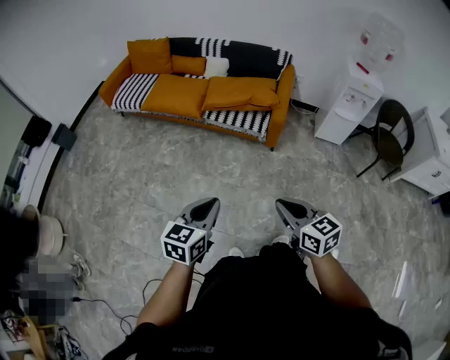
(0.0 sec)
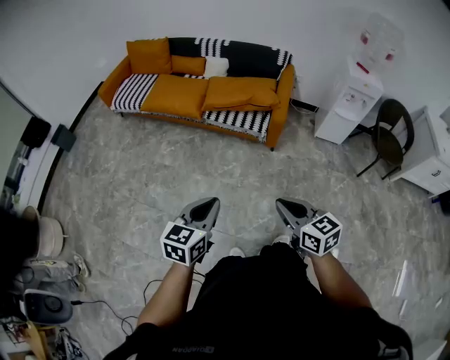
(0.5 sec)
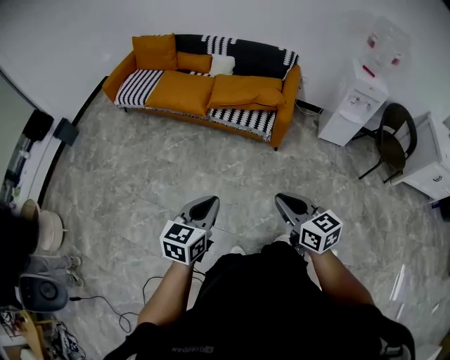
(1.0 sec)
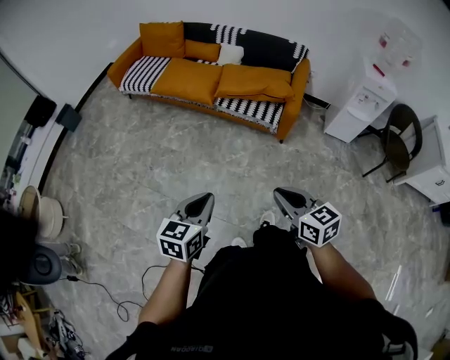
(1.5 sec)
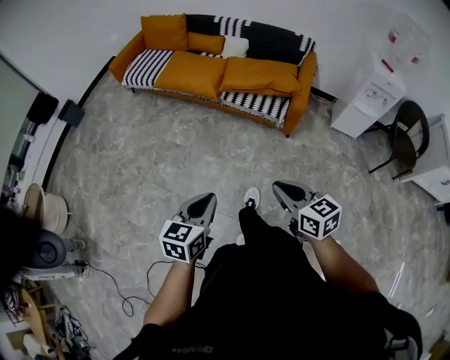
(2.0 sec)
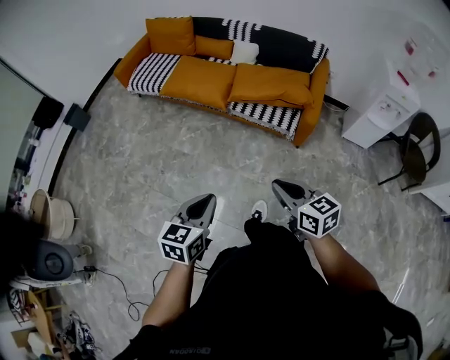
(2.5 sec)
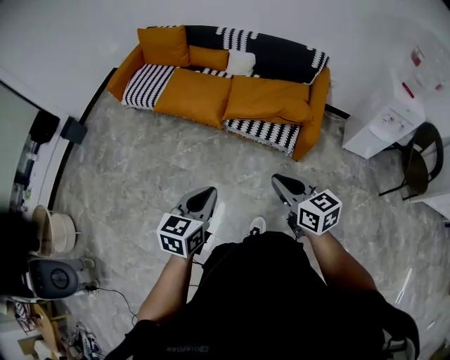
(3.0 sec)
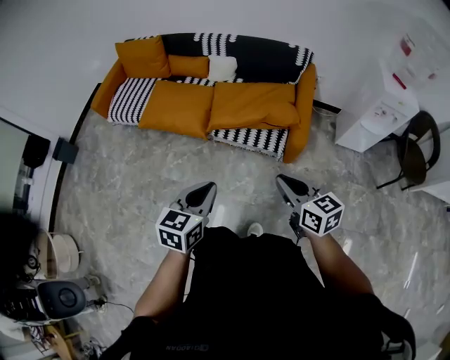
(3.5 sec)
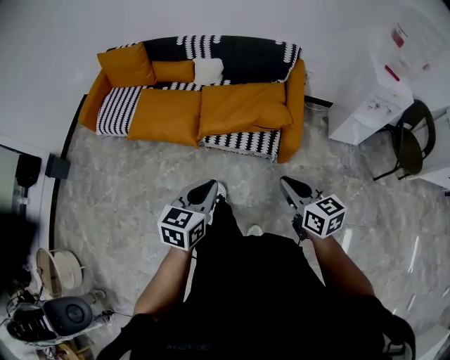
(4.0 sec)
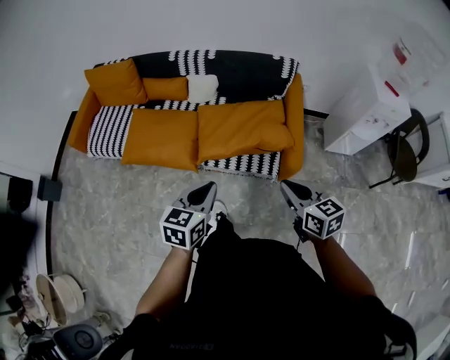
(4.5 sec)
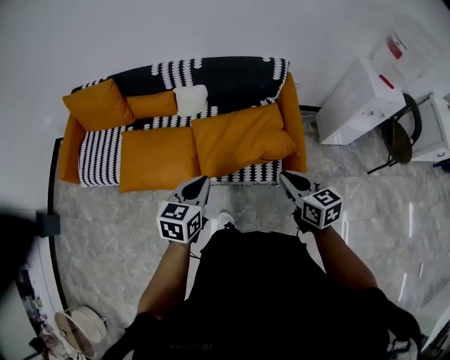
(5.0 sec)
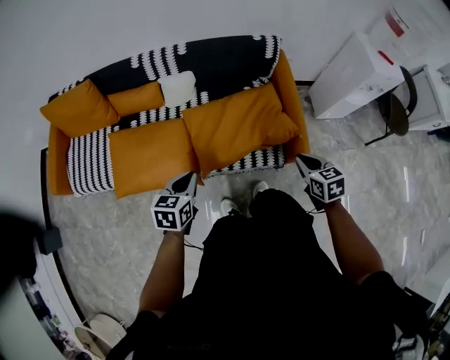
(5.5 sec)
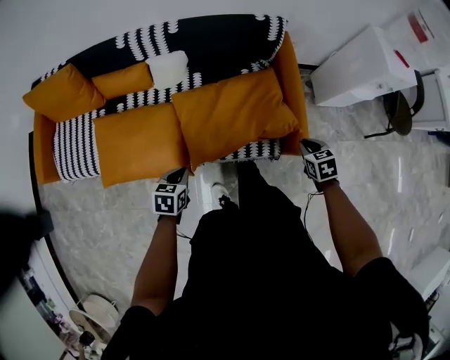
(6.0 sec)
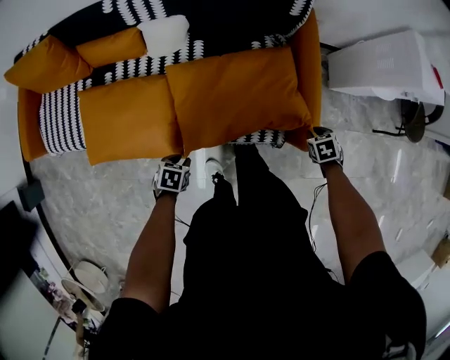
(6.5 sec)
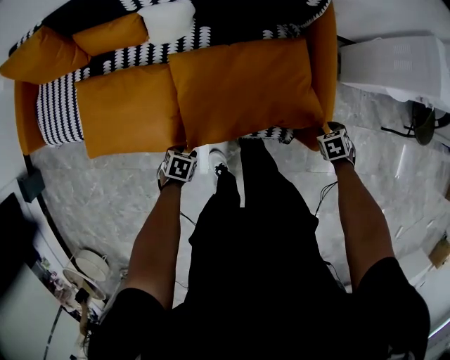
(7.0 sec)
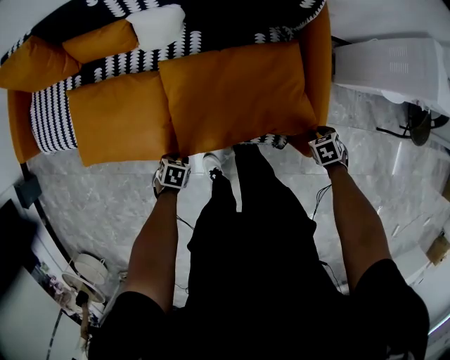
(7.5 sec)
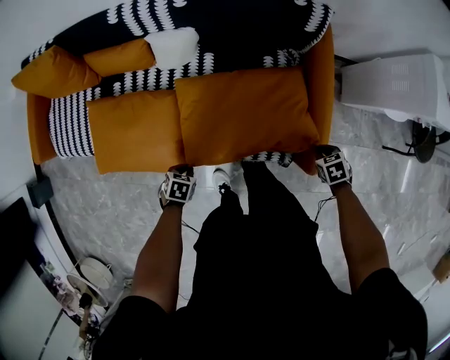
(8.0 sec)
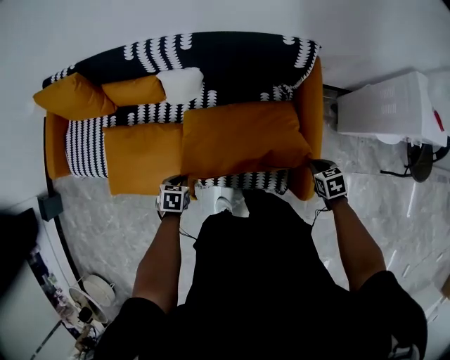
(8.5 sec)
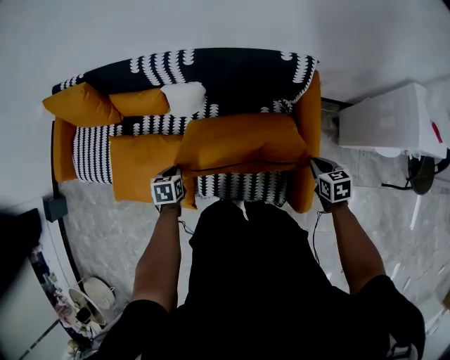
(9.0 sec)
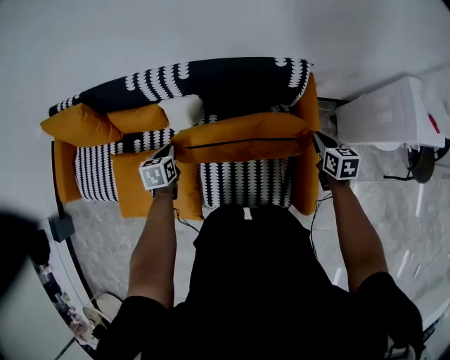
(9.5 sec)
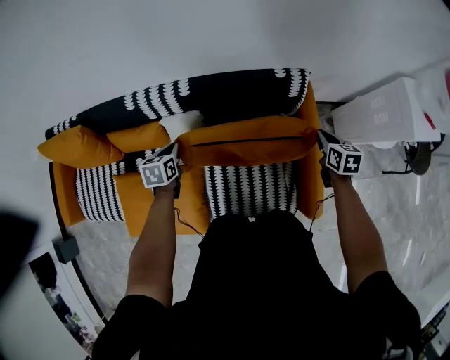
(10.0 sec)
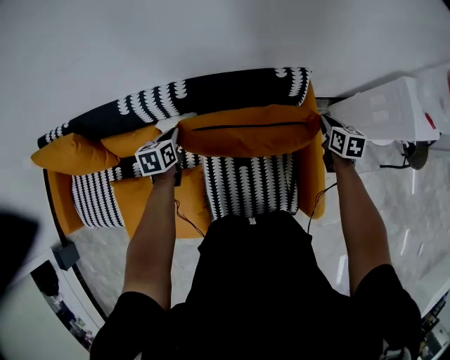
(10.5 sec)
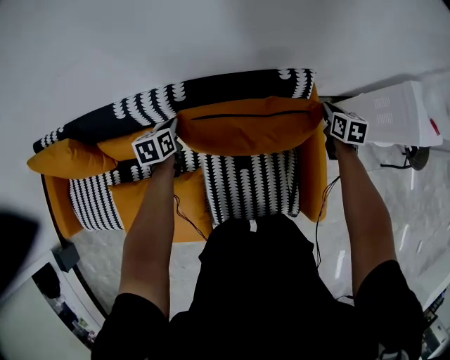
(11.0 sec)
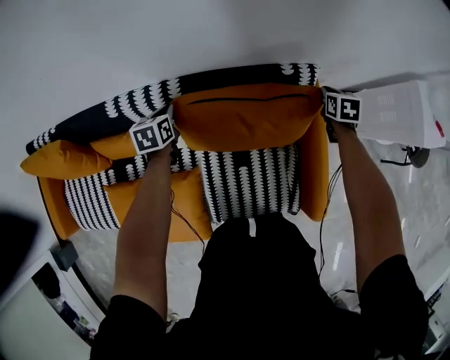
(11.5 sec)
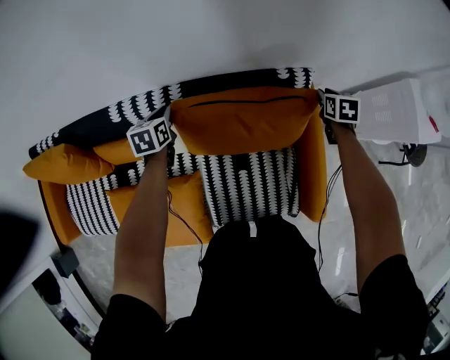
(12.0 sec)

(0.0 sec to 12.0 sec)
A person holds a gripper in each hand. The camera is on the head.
0.0 sec - 2.0 sec: The two grippers go roughly 5 cm to the left.
2.0 sec - 4.0 sec: The two grippers go some 35 cm forward.
4.0 sec - 6.0 sec: The right gripper shifts by about 35 cm, and angles its fingers downward, by approximately 40 degrees; the left gripper changes place by approximately 40 cm, and changes its angle by about 30 degrees.
6.0 sec - 8.0 sec: The two grippers go approximately 15 cm downward. The left gripper turns by approximately 30 degrees, and opens, then closes once more. The right gripper rotates about 20 degrees, and opens, then closes again.
8.0 sec - 10.0 sec: The left gripper changes place by roughly 40 cm, and rotates about 30 degrees. Meanwhile the right gripper ends up about 30 cm from where it was, and tips its fingers upward by roughly 30 degrees.
10.0 sec - 12.0 sec: The two grippers go some 15 cm forward.

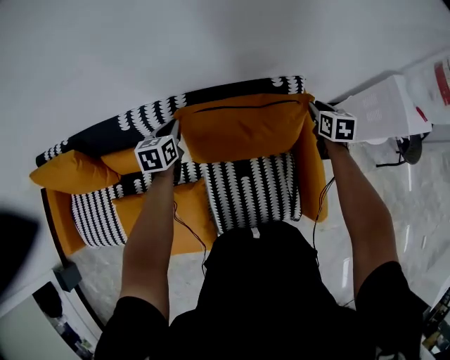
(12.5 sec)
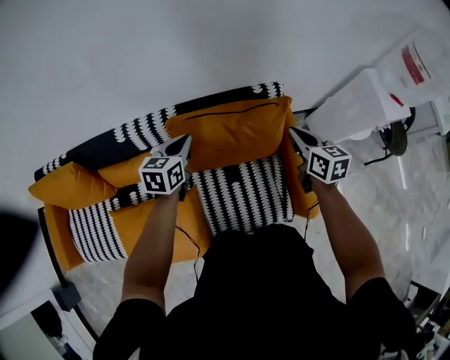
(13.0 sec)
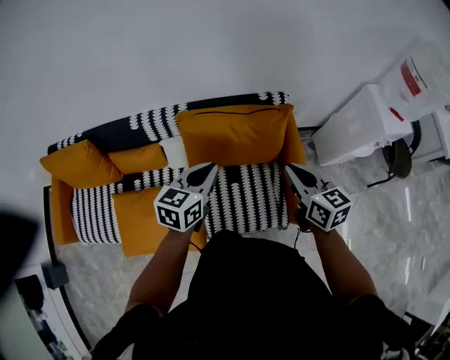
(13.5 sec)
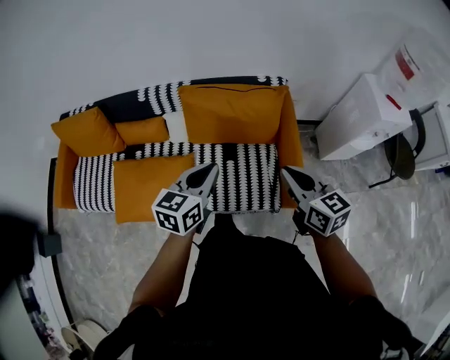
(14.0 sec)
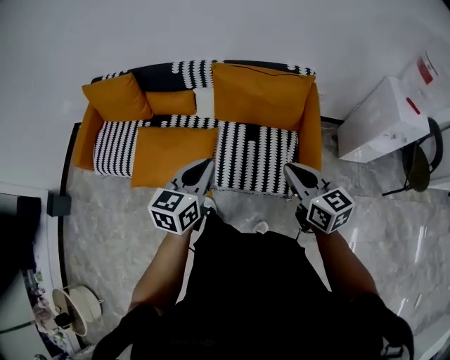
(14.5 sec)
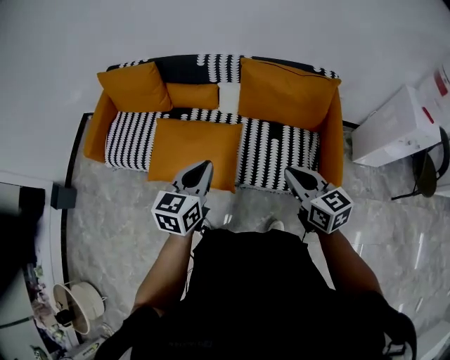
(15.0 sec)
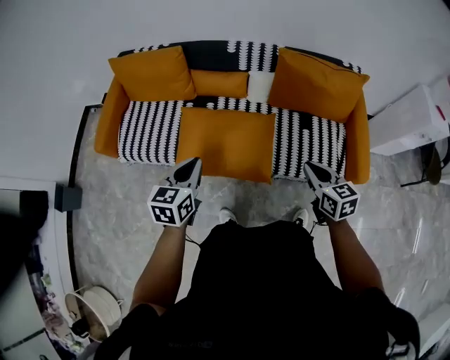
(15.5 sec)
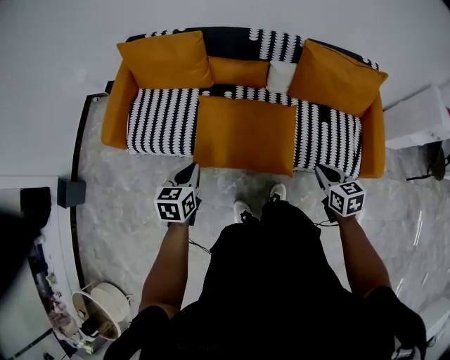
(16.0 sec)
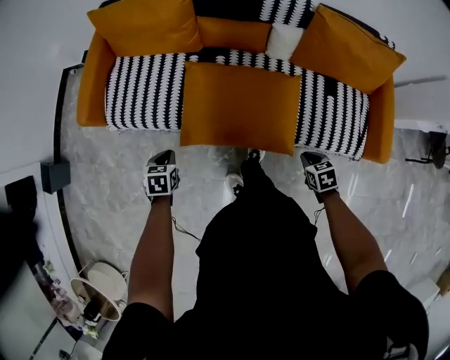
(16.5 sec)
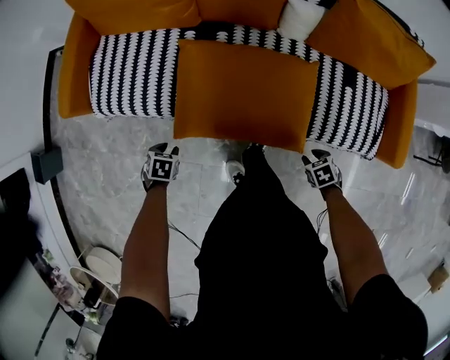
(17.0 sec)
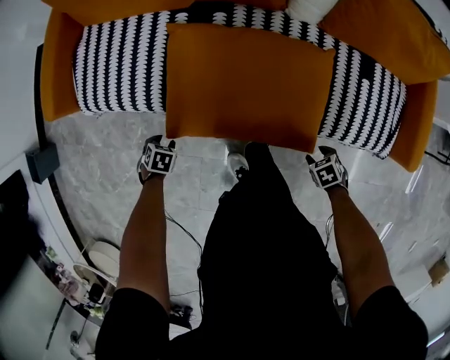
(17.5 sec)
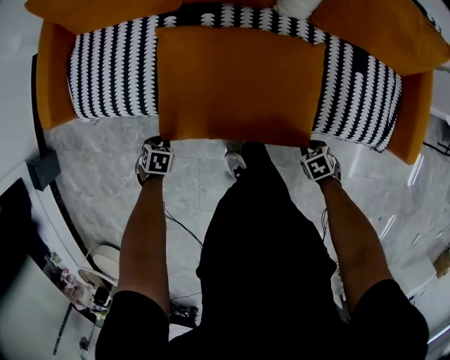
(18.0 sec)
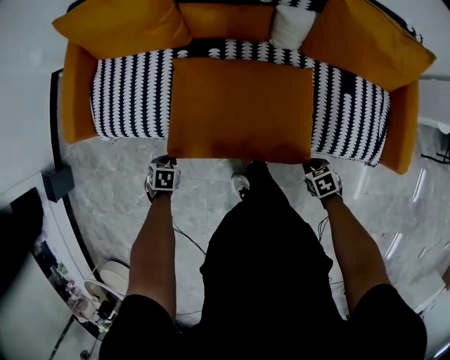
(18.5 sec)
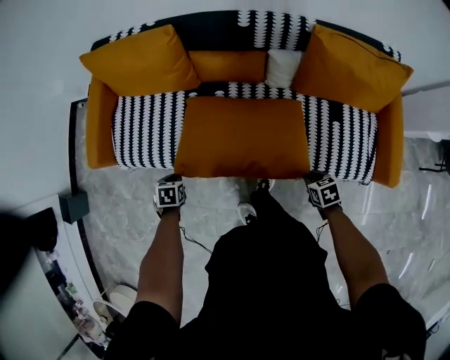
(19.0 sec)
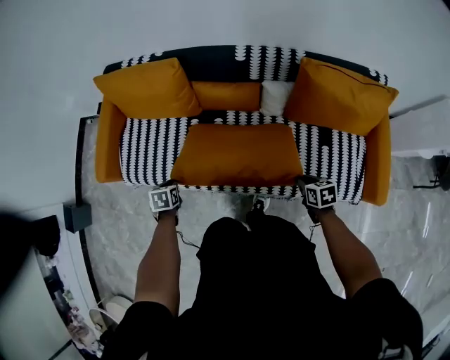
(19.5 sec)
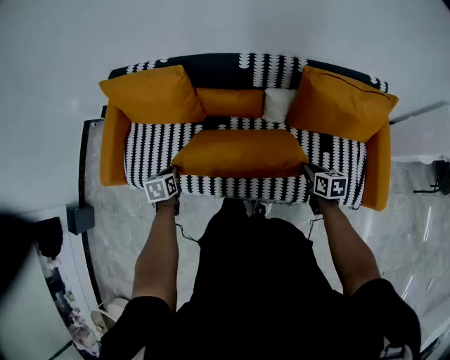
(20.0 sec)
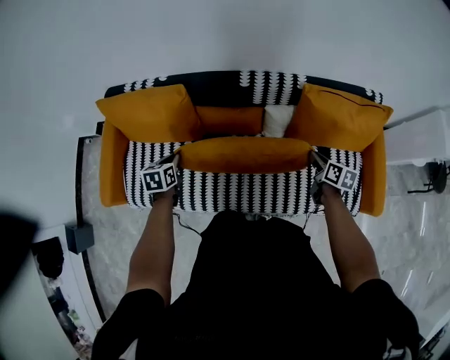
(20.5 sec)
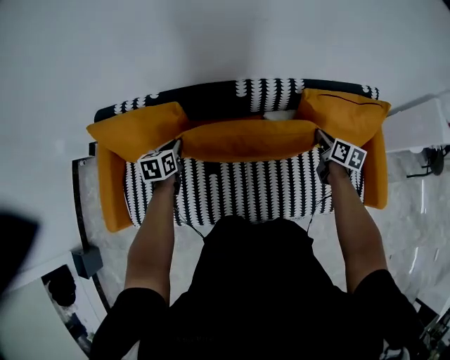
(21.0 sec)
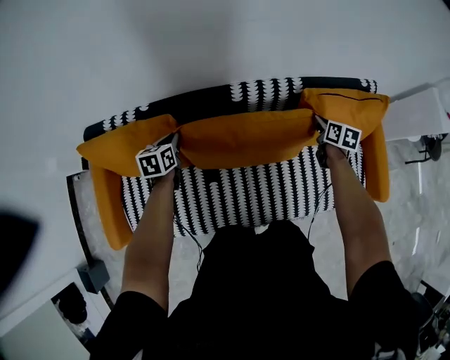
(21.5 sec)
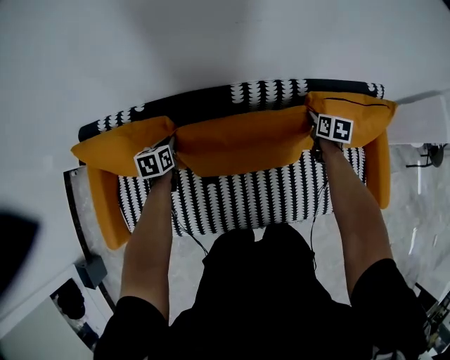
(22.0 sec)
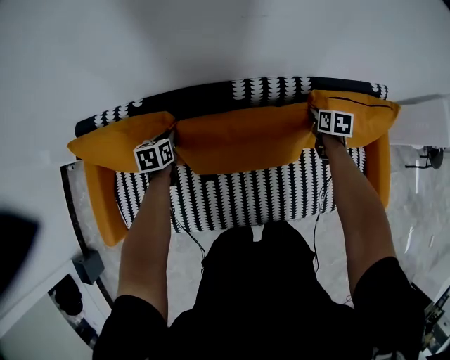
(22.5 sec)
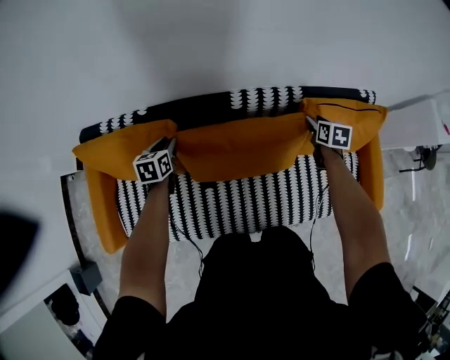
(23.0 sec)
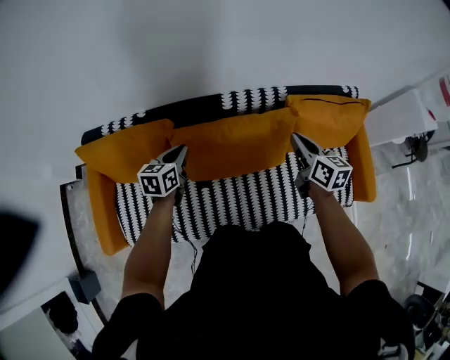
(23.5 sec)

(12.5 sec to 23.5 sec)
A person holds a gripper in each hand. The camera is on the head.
12.5 sec - 14.5 sec: The pair of grippers is taken backward, about 50 cm. The left gripper goes about 20 cm upward. The right gripper swivels approximately 50 degrees.
14.5 sec - 16.0 sec: The right gripper shifts approximately 35 cm to the left and downward, and rotates some 30 degrees. The left gripper moves to the left, about 50 cm.
16.0 sec - 18.0 sec: Both grippers move downward, some 40 cm. The right gripper points its fingers roughly 40 degrees further downward, and opens, then closes again. Meanwhile the left gripper points its fingers approximately 50 degrees further downward, and opens, then closes once more.
18.0 sec - 20.0 sec: The two grippers go some 30 cm upward. The right gripper tips its fingers upward by approximately 30 degrees, while the left gripper rotates approximately 40 degrees.
20.0 sec - 21.5 sec: The right gripper ends up approximately 30 cm from where it was, and swivels about 30 degrees. Meanwhile the left gripper moves approximately 35 cm, and swivels roughly 20 degrees.
21.5 sec - 23.5 sec: The left gripper travels to the right, upward and backward by approximately 10 cm; the right gripper is displaced upward, backward and to the left by some 20 cm, changes its angle by about 20 degrees, and opens, then closes again.

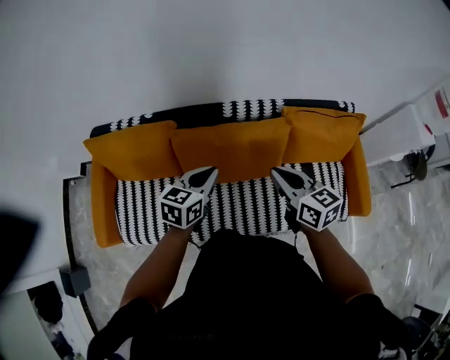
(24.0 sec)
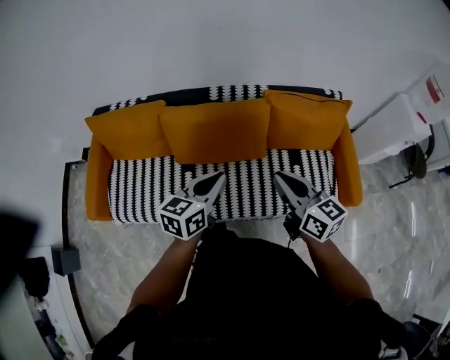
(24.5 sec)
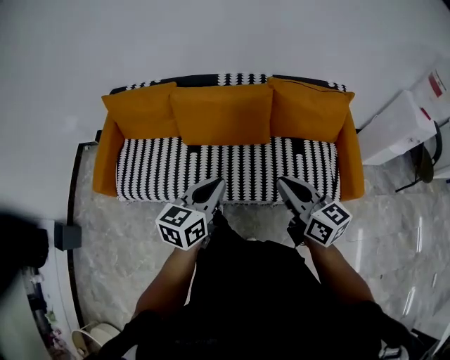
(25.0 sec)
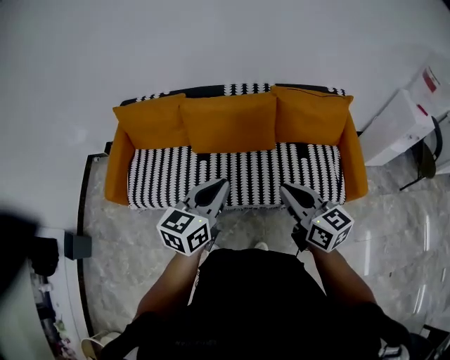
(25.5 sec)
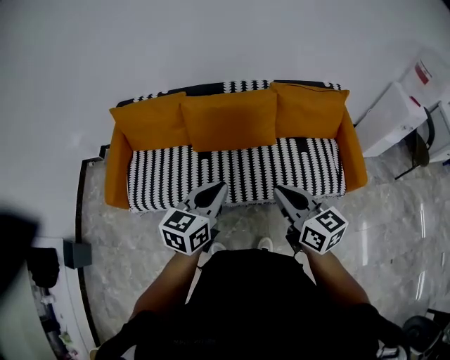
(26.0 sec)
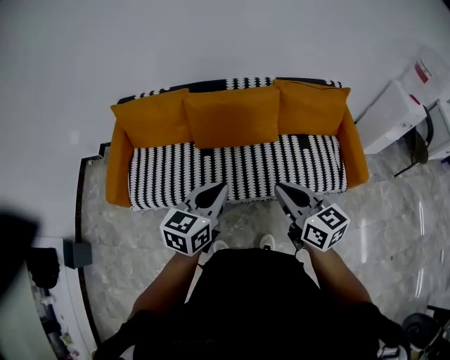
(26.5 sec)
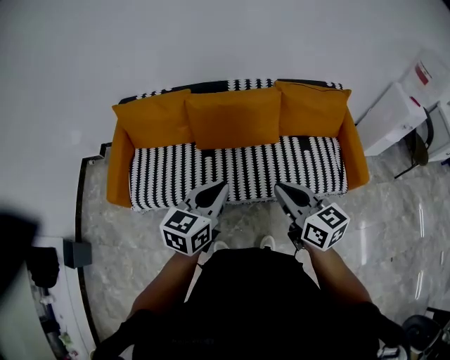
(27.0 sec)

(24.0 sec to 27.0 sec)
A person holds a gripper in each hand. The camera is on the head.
24.0 sec - 25.5 sec: Both grippers travel together backward, about 30 cm.
25.5 sec - 27.0 sec: The grippers both shift to the left by approximately 10 cm.
